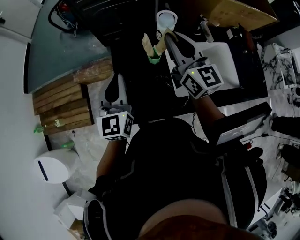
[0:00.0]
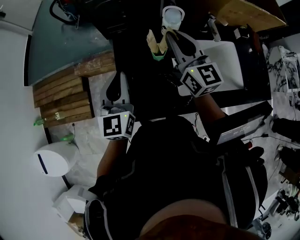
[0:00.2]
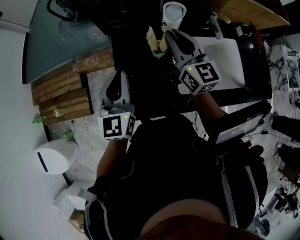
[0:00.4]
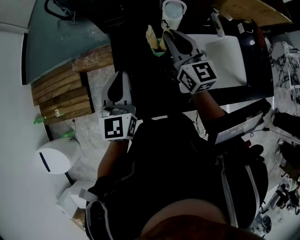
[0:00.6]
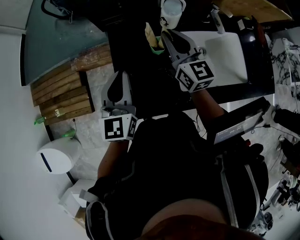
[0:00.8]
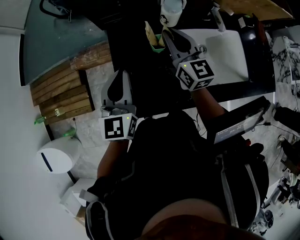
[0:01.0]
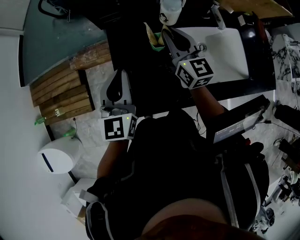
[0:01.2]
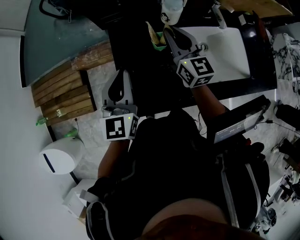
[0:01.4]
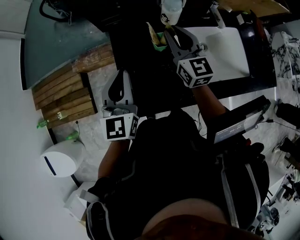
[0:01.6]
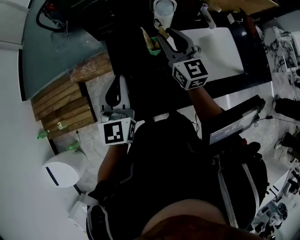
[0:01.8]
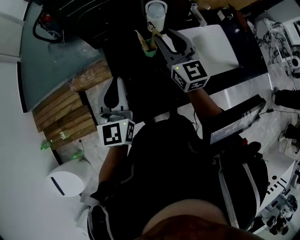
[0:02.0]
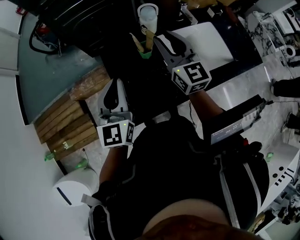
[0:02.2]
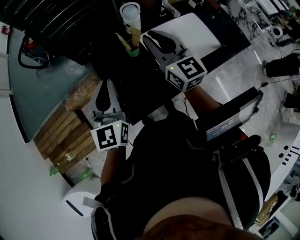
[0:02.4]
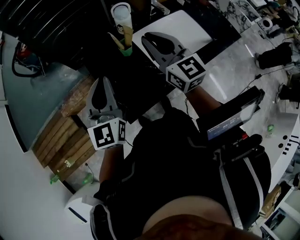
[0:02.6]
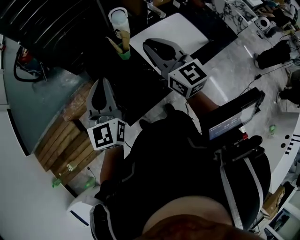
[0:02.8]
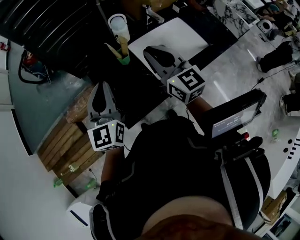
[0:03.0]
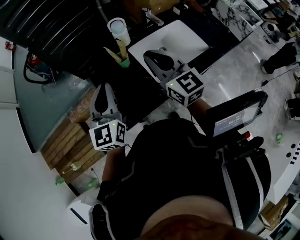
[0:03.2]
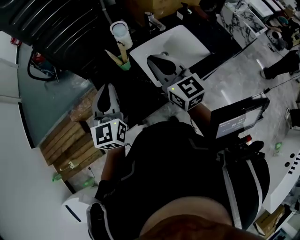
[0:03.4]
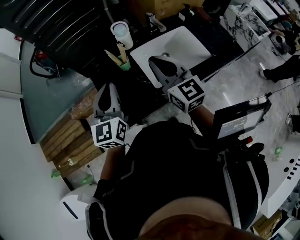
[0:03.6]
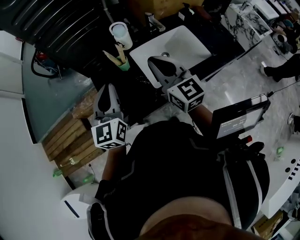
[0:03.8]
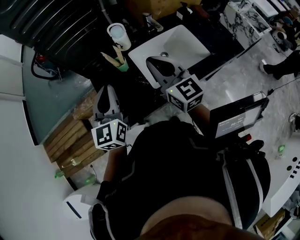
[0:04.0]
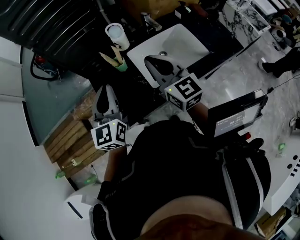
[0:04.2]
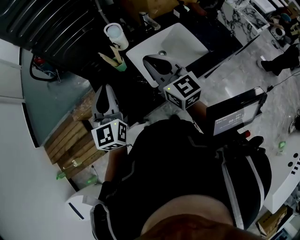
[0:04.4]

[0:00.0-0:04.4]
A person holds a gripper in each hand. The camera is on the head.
0:00.0 to 0:01.4: The right gripper is displaced downward by roughly 10 cm.
0:01.4 to 0:03.0: The right gripper is displaced backward and upward by roughly 20 cm, while the left gripper is displaced upward by roughly 5 cm.
0:03.0 to 0:04.4: The two grippers go about 5 cm to the right.

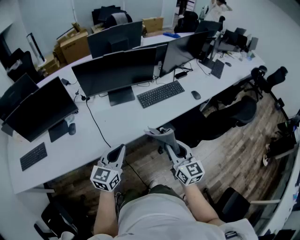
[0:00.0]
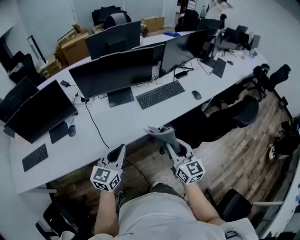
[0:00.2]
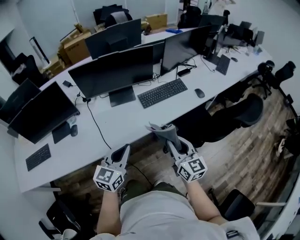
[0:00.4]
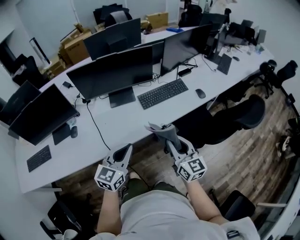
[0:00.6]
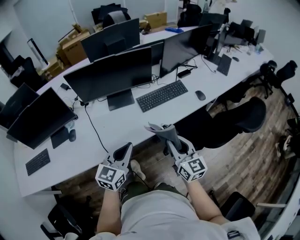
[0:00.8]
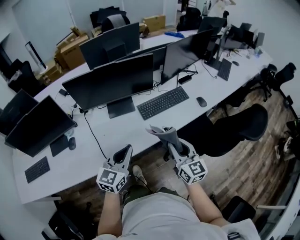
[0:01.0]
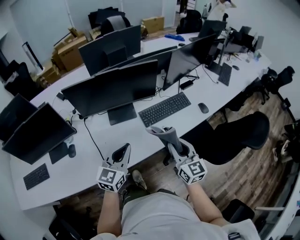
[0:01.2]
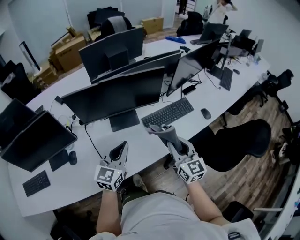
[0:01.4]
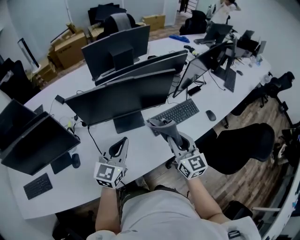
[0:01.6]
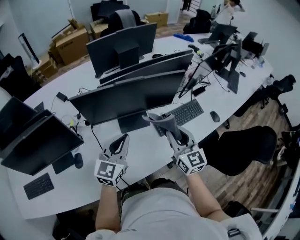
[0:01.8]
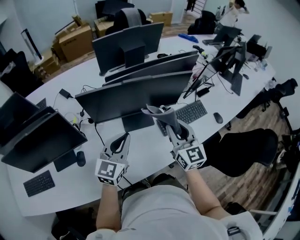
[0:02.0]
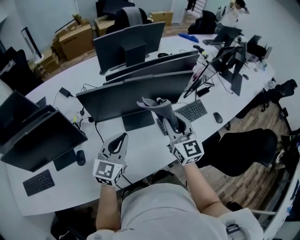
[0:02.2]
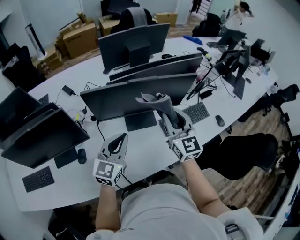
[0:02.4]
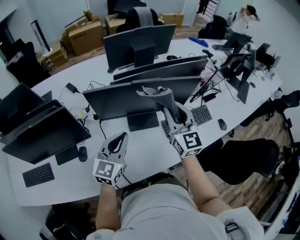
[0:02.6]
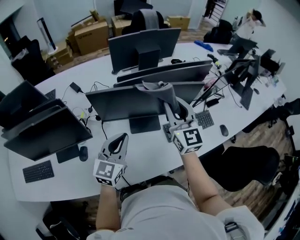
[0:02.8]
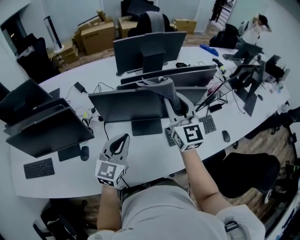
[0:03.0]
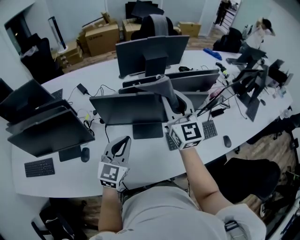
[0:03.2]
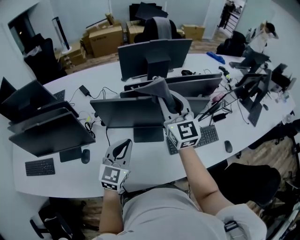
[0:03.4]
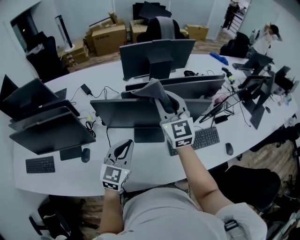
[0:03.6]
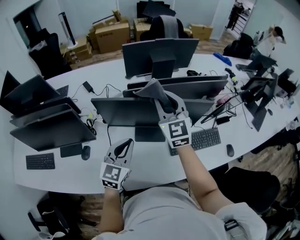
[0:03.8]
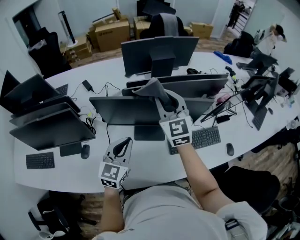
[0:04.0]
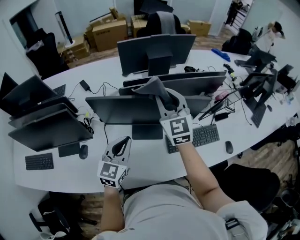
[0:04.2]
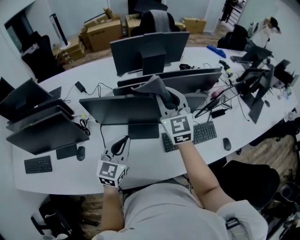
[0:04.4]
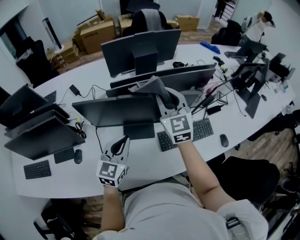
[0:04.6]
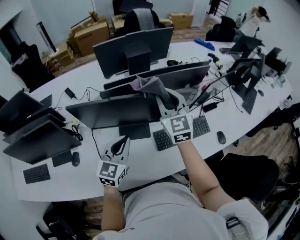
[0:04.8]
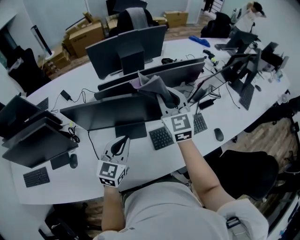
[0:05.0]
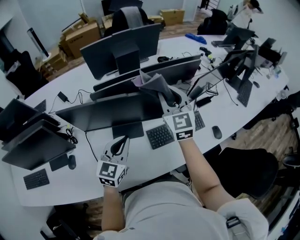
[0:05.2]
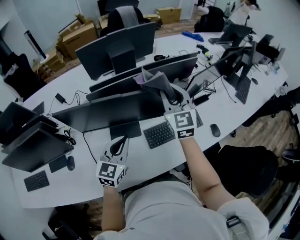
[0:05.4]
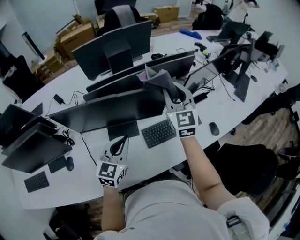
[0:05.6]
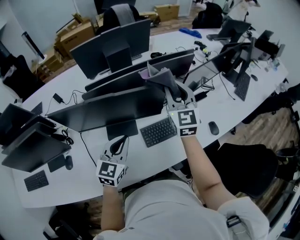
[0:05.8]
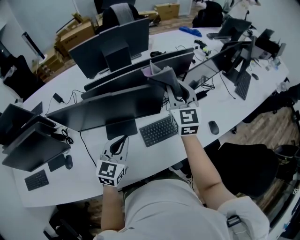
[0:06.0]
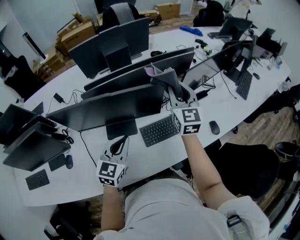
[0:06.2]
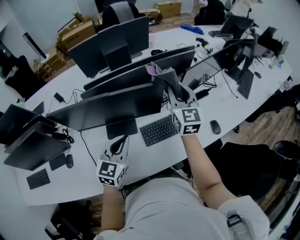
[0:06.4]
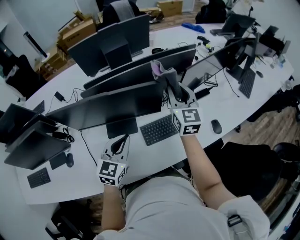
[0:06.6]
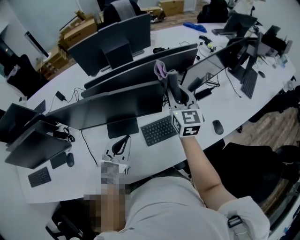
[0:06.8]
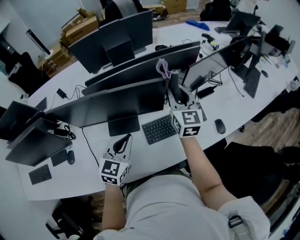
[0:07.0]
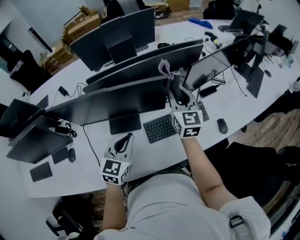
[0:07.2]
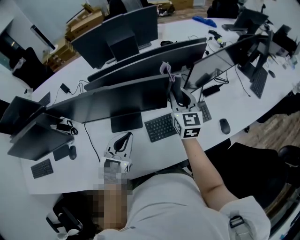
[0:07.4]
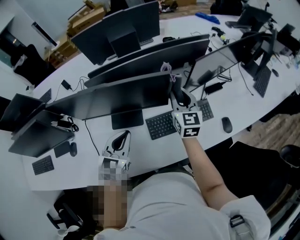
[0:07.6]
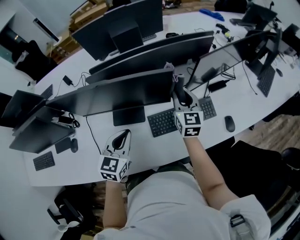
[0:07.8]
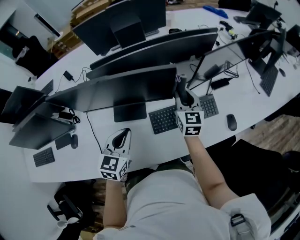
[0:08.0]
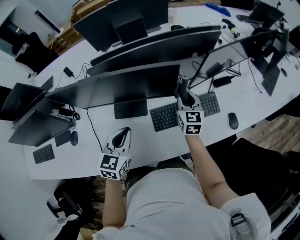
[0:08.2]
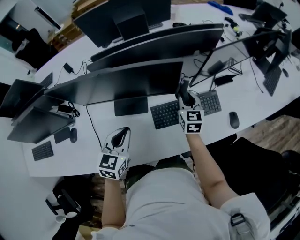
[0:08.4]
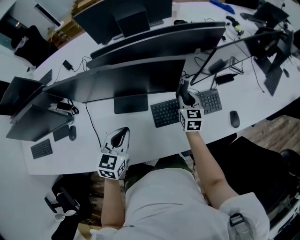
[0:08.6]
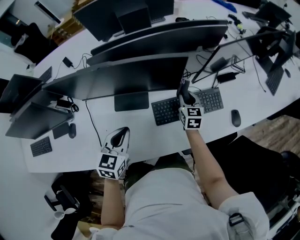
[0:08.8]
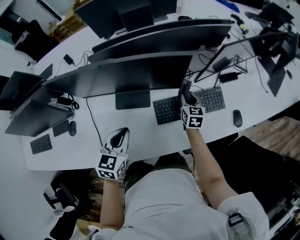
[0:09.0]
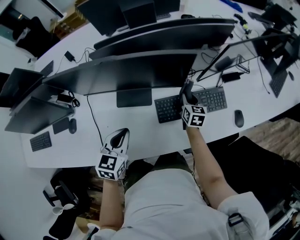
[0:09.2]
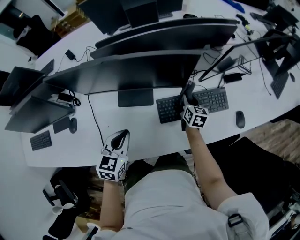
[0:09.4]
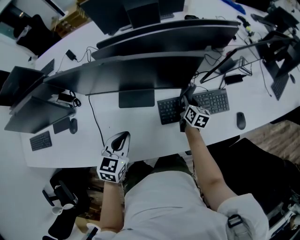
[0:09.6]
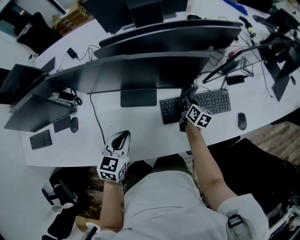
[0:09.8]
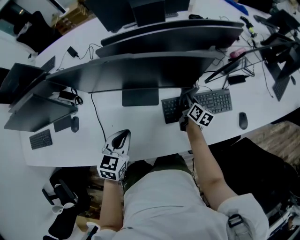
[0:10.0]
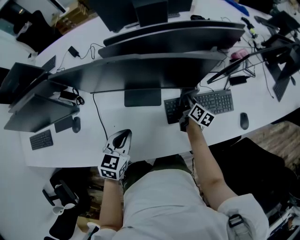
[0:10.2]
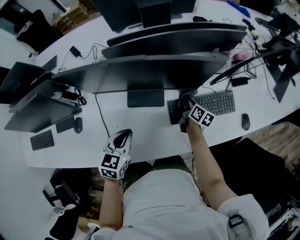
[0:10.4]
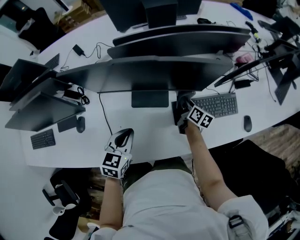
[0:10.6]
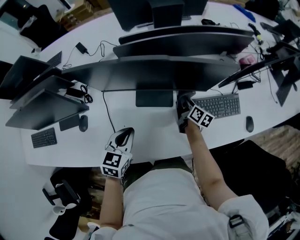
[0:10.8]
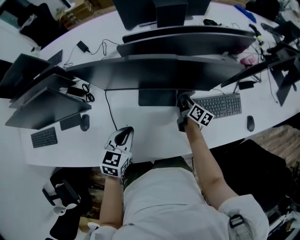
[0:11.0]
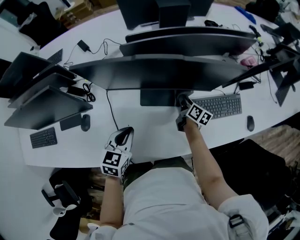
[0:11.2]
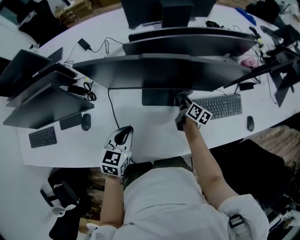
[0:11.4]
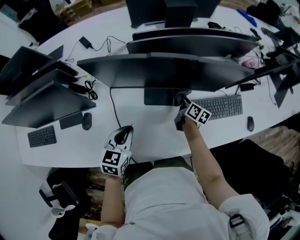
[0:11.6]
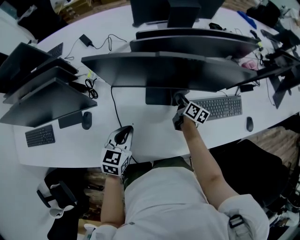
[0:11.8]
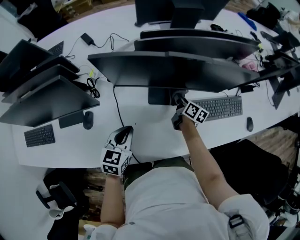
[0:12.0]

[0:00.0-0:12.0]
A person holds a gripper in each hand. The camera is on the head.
0:00.0 to 0:01.6: The two grippers go roughly 25 cm forward.
0:01.6 to 0:03.0: The right gripper is displaced forward, upward and to the left by approximately 25 cm. Meanwhile the left gripper moves to the left, approximately 10 cm.
0:03.0 to 0:04.4: The right gripper goes roughly 5 cm forward. The left gripper ends up some 5 cm from where it was.
0:04.4 to 0:06.0: The right gripper is displaced to the right by roughly 20 cm. Meanwhile the left gripper shifts roughly 15 cm to the right.
0:06.0 to 0:07.6: The right gripper travels downward by some 15 cm.
0:07.6 to 0:09.0: The left gripper is displaced downward by about 5 cm. Meanwhile the right gripper goes some 20 cm downward, and swivels roughly 20 degrees.
0:09.0 to 0:10.4: Both grippers travel together to the left, approximately 5 cm. The right gripper turns by some 40 degrees.
0:10.4 to 0:12.0: Both grippers travel together to the left, about 15 cm.

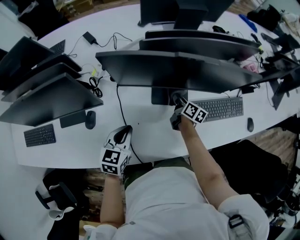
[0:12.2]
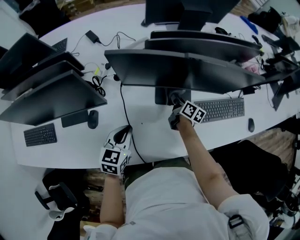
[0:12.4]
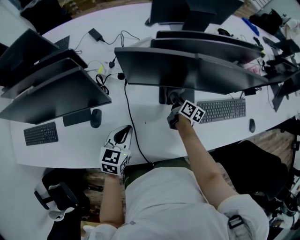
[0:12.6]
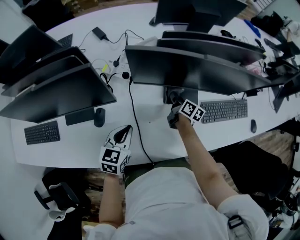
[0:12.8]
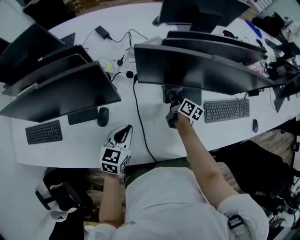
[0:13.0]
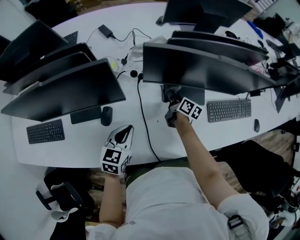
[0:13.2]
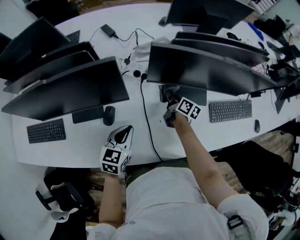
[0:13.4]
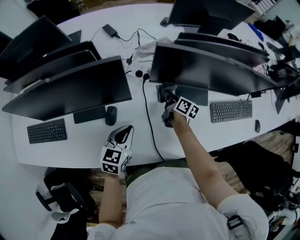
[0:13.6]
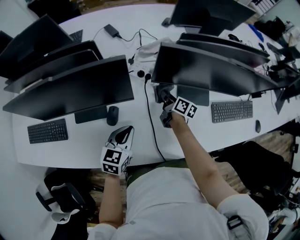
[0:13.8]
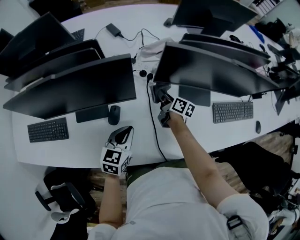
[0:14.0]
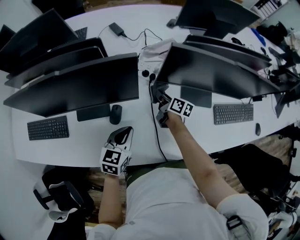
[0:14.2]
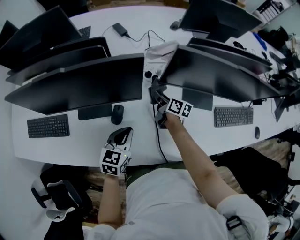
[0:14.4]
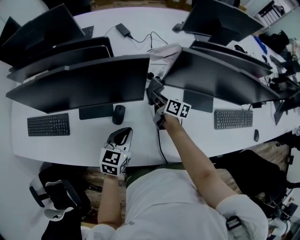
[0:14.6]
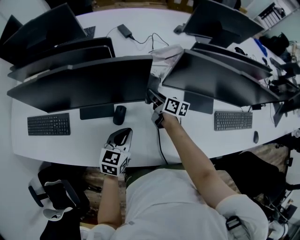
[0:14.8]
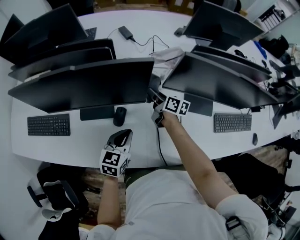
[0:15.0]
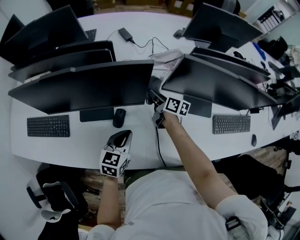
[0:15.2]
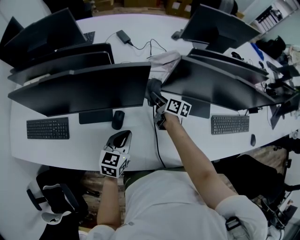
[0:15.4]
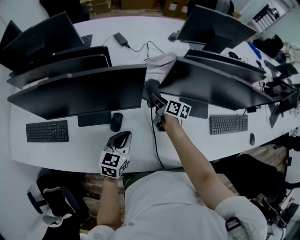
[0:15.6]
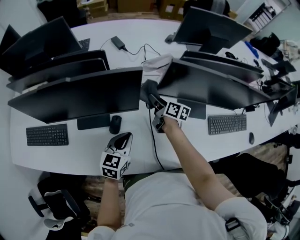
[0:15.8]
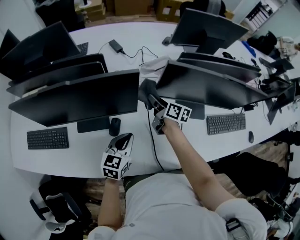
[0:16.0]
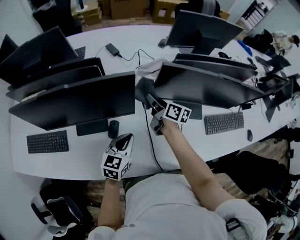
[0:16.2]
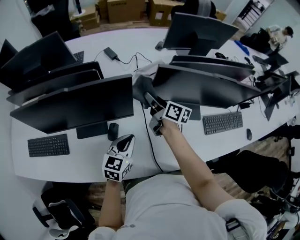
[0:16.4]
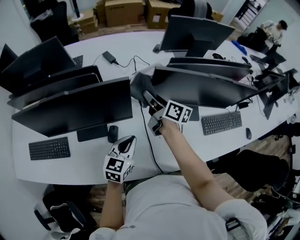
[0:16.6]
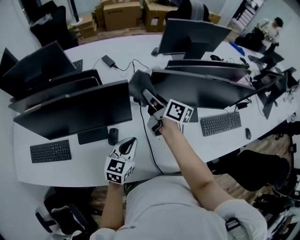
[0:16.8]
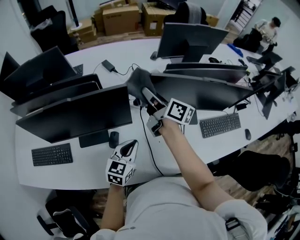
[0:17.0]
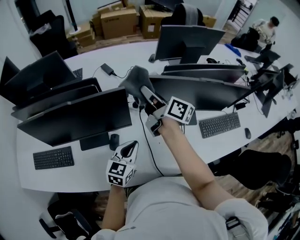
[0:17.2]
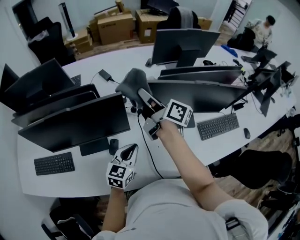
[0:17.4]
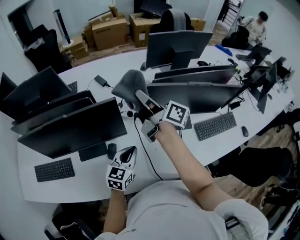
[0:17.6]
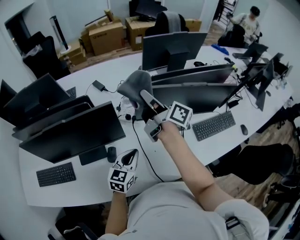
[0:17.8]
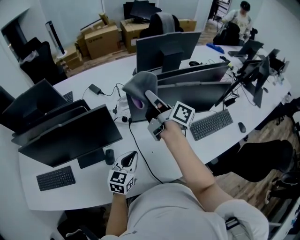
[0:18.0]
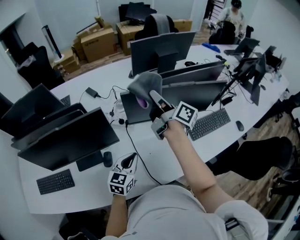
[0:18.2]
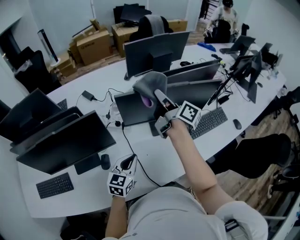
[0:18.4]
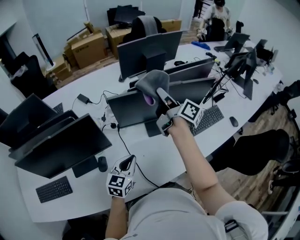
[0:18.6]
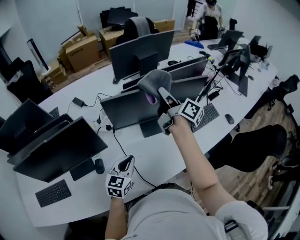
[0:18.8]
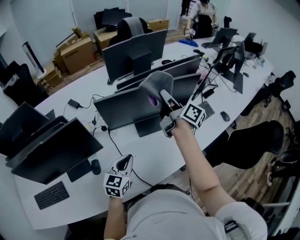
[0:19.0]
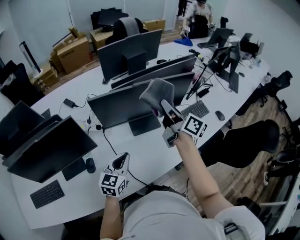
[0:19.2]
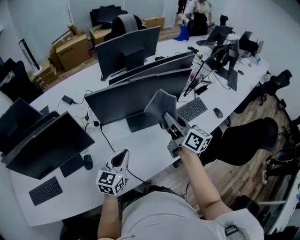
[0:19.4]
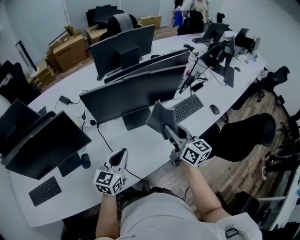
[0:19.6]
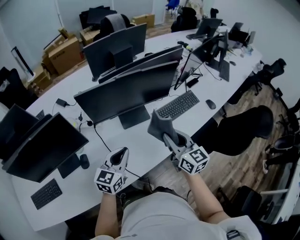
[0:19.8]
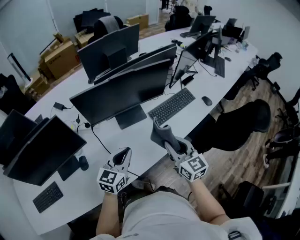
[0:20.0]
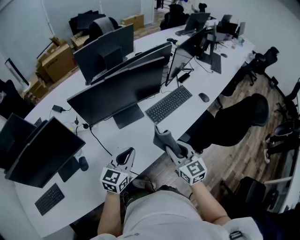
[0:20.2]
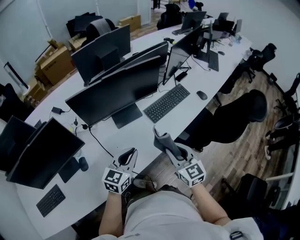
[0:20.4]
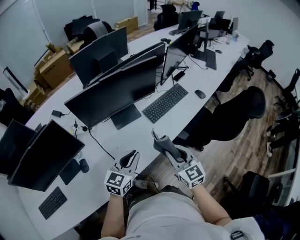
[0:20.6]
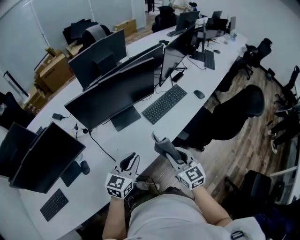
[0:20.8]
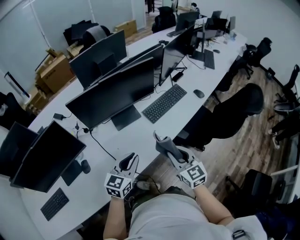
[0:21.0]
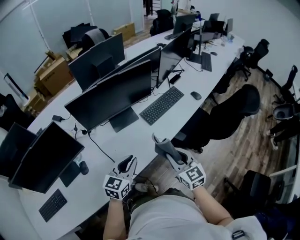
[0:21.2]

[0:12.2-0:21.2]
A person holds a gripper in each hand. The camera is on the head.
0:12.2 to 0:13.8: The right gripper is displaced to the left by about 20 cm. Meanwhile the left gripper travels to the left by some 15 cm.
0:13.8 to 0:15.2: The right gripper goes some 10 cm to the left.
0:15.2 to 0:16.6: The right gripper goes roughly 15 cm upward; the left gripper moves upward and to the right, approximately 10 cm.
0:16.6 to 0:18.2: The right gripper is displaced to the right and upward by roughly 20 cm, and turns by roughly 30 degrees; the left gripper travels to the right by roughly 10 cm.
0:18.2 to 0:19.8: The left gripper moves to the right, about 15 cm, while the right gripper travels to the right and backward by some 35 cm, and twists roughly 50 degrees counterclockwise, seen from behind.
0:19.8 to 0:21.2: The left gripper heads to the right and backward, covering approximately 10 cm. The right gripper shifts roughly 15 cm backward and to the right.
